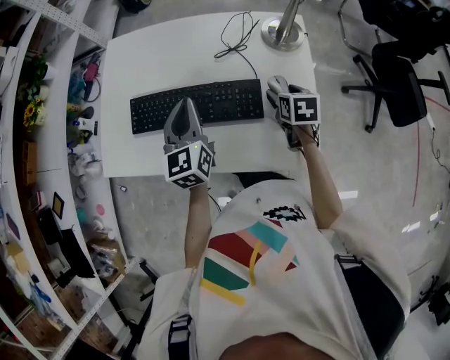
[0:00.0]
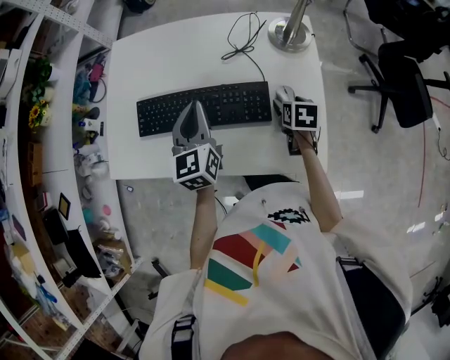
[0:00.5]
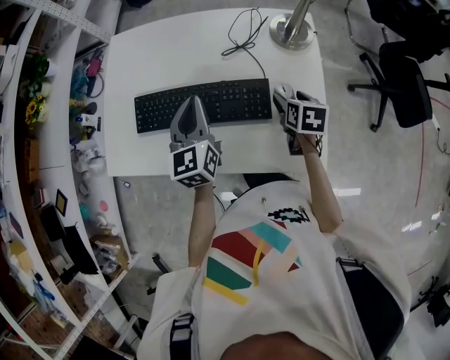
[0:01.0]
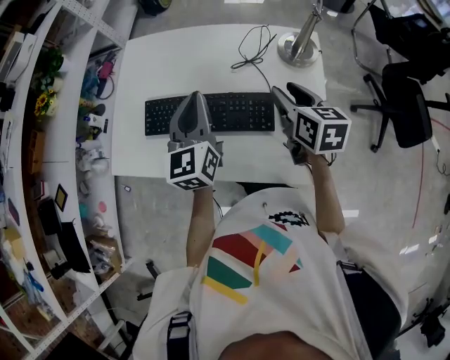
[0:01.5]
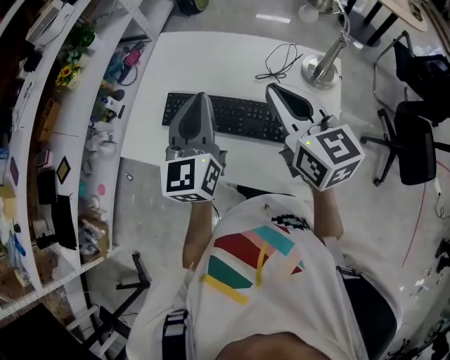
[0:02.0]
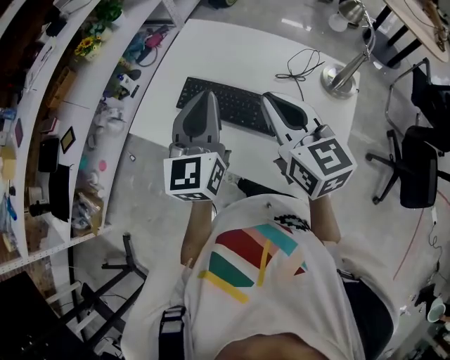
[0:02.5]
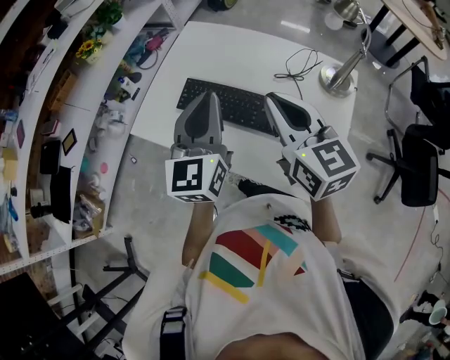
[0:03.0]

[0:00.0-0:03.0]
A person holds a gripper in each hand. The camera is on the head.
0:00.0 to 0:01.5: The right gripper goes roughly 15 cm upward, changes its angle by approximately 20 degrees, and closes up; the left gripper heads upward, covering approximately 5 cm.
0:01.5 to 0:03.0: The left gripper goes roughly 15 cm upward, backward and to the left. Meanwhile the right gripper moves to the left and upward, roughly 20 cm, turns by some 40 degrees, and closes up.

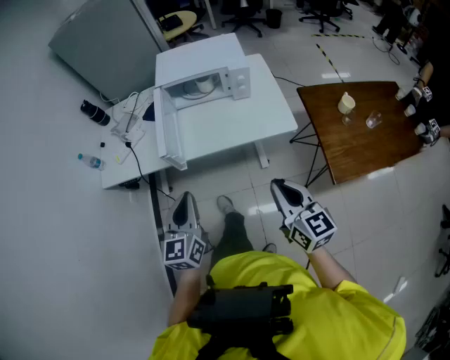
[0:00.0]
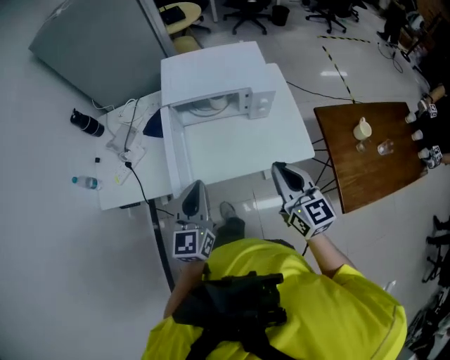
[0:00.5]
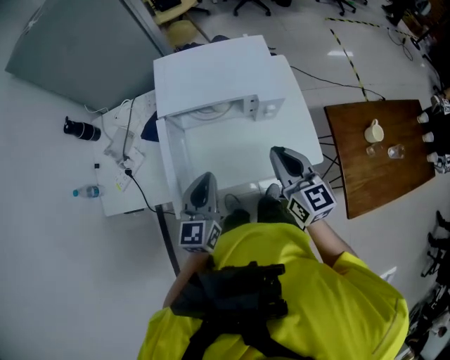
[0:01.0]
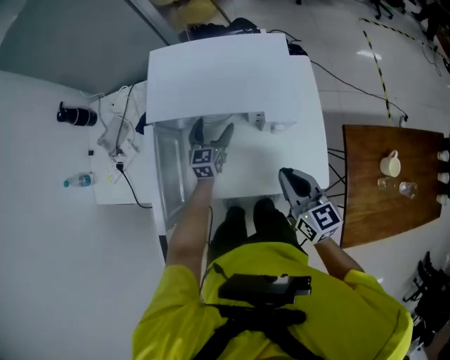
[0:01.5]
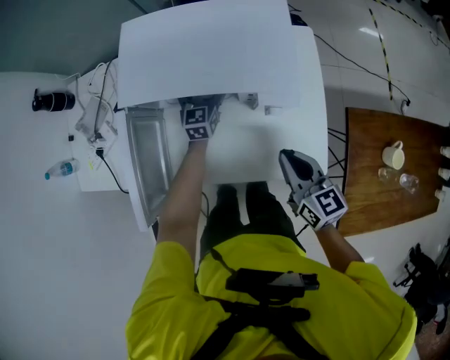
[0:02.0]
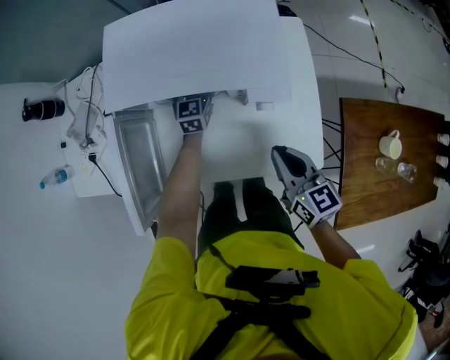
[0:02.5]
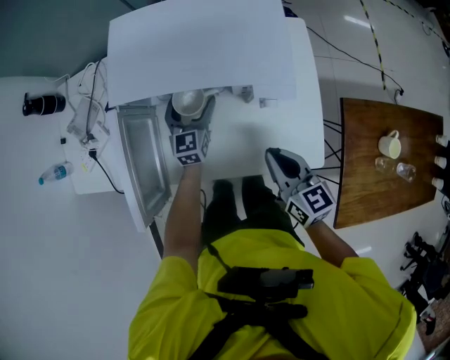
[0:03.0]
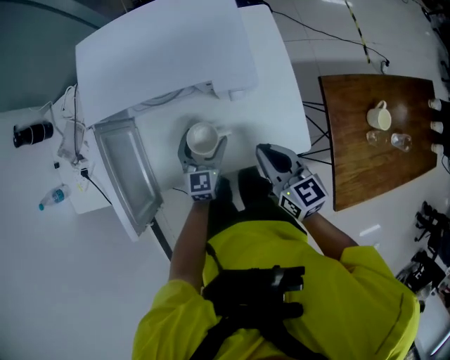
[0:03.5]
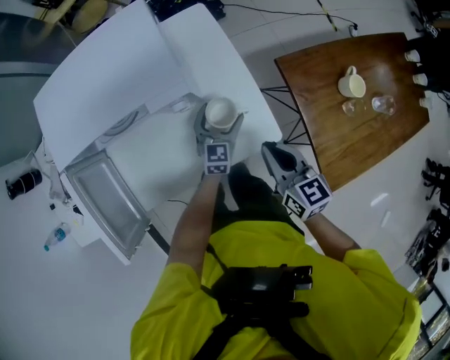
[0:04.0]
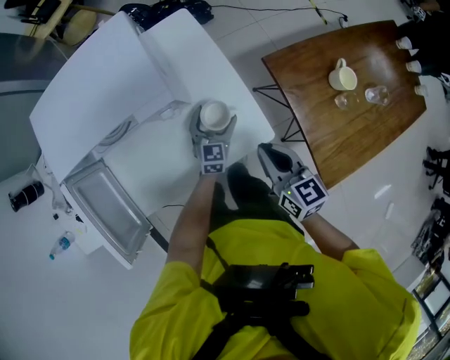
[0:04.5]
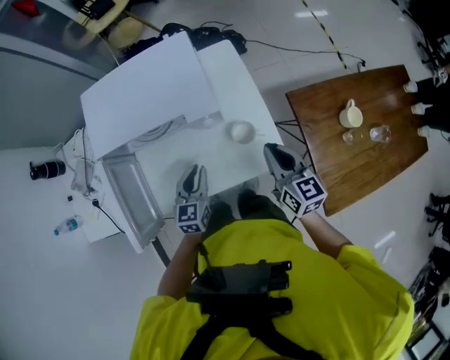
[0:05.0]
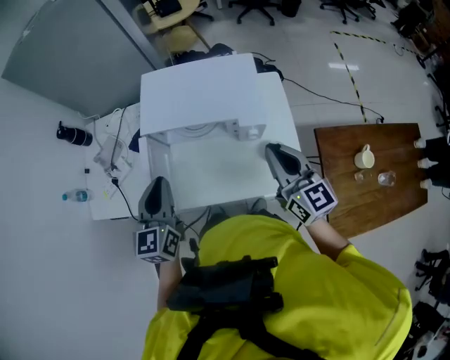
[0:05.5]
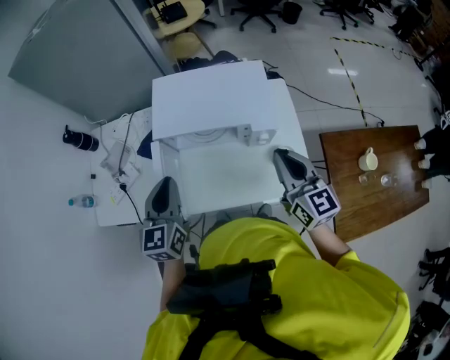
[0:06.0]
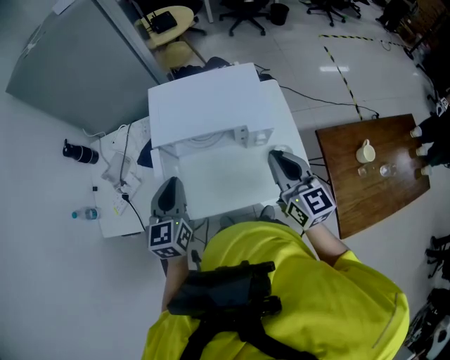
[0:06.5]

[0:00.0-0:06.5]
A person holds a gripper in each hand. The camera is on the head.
0:00.0 to 0:02.0: The two grippers travel together, forward, roughly 50 cm. The right gripper moves downward, approximately 15 cm; the left gripper goes roughly 30 cm downward, and opens up.
0:02.0 to 0:04.5: The right gripper shifts by about 20 cm, and turns by some 20 degrees. Meanwhile the left gripper ends up approximately 35 cm from where it was, and rotates roughly 30 degrees.
0:04.5 to 0:06.5: The left gripper heads to the left and upward, covering some 50 cm, swivels approximately 30 degrees, and closes. Meanwhile the right gripper is displaced upward and to the left by approximately 30 cm, and swivels some 30 degrees.

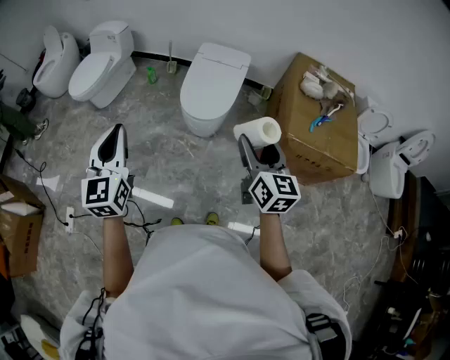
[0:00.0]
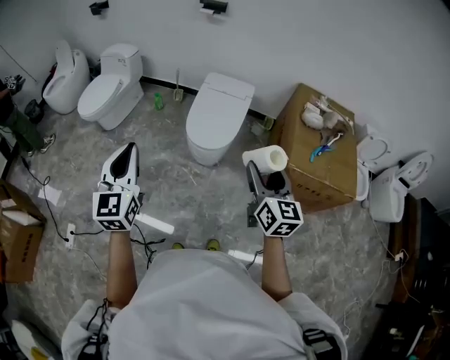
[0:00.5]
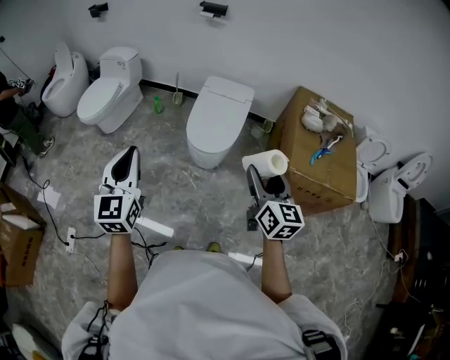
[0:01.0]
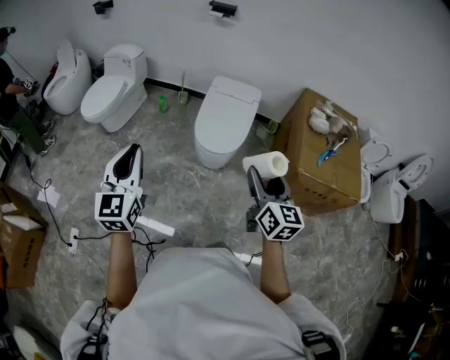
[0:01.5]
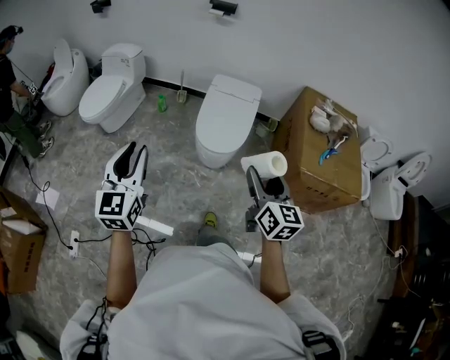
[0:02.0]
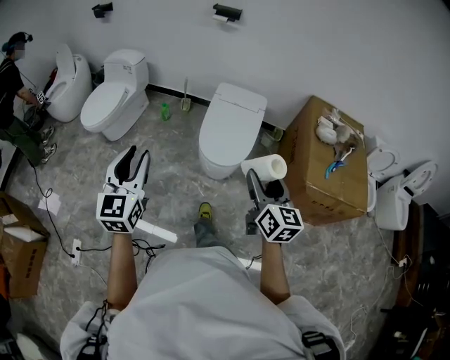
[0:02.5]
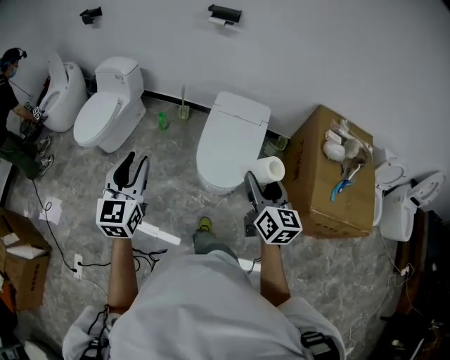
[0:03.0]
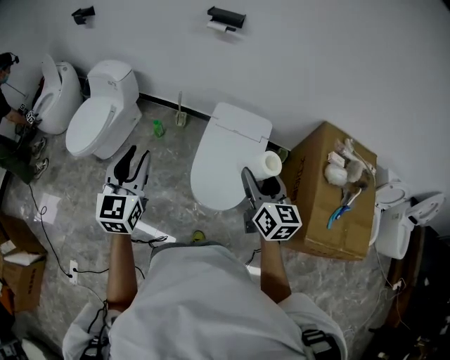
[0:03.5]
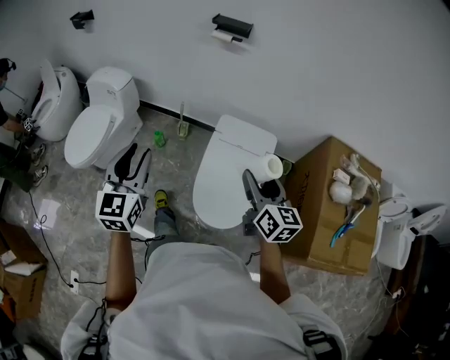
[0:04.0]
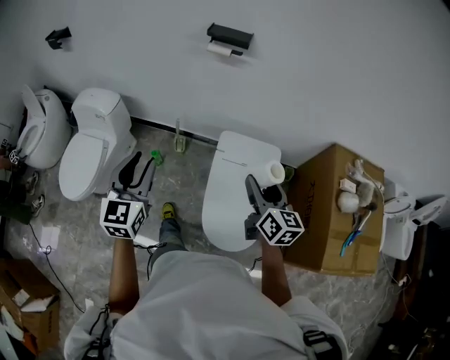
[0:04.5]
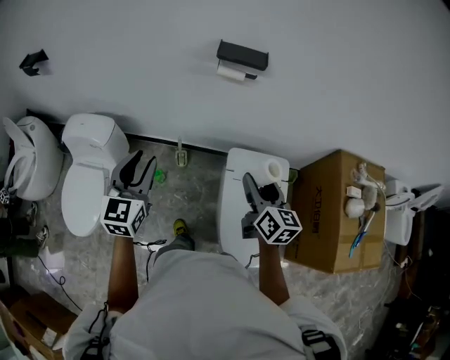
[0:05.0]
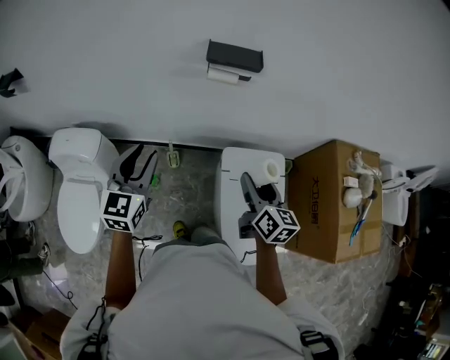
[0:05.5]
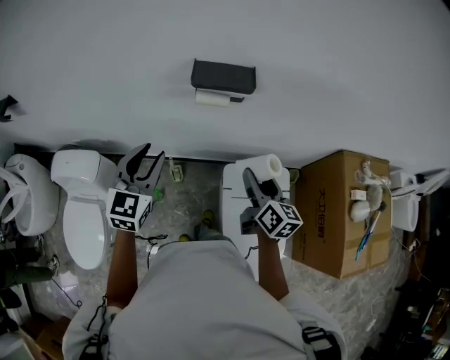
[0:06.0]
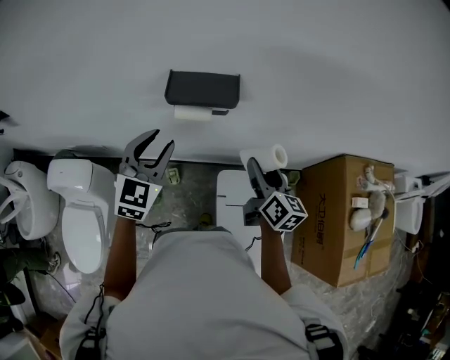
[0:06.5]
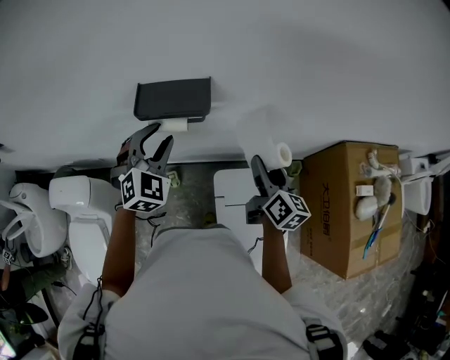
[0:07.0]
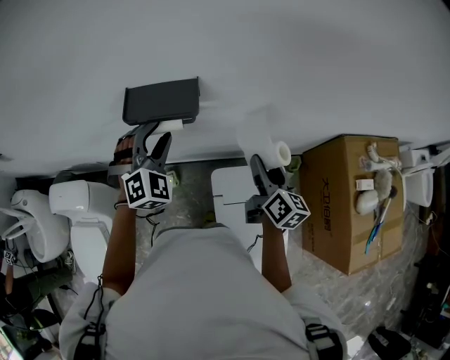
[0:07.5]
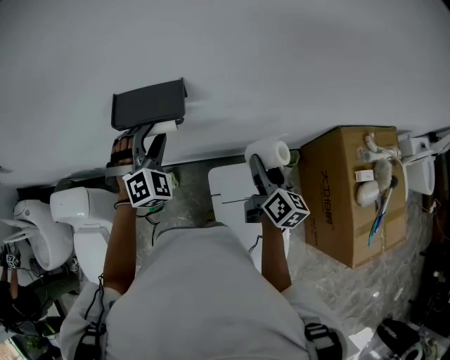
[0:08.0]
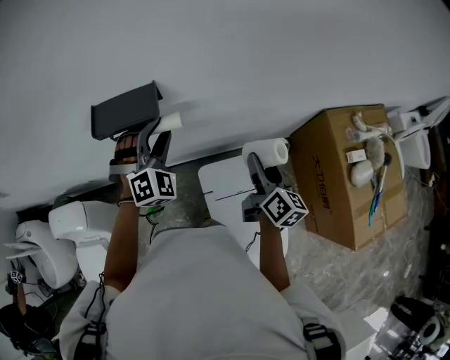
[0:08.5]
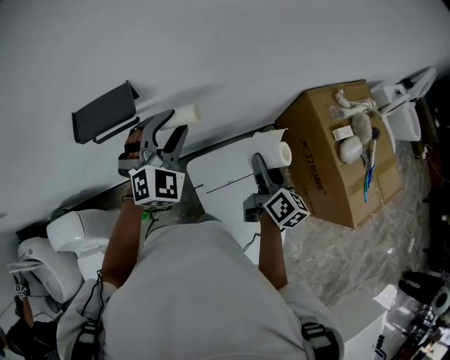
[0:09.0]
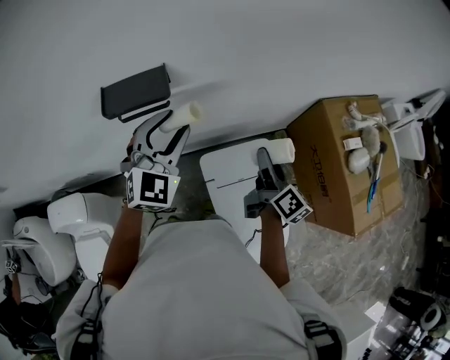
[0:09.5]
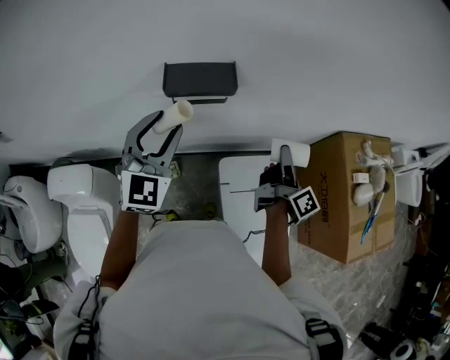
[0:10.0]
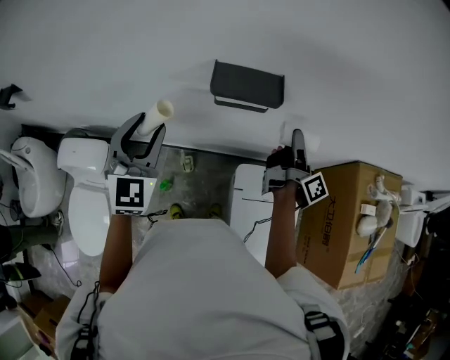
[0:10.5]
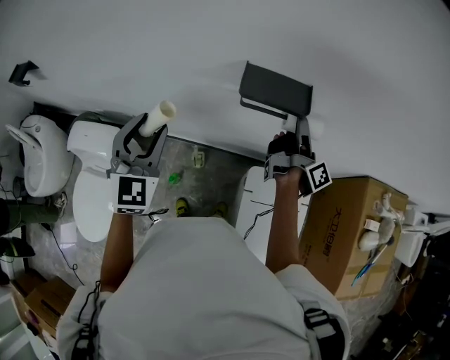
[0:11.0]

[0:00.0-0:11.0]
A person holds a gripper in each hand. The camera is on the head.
0:00.0 to 0:02.0: Both grippers move to the left, roughly 10 cm.
0:02.0 to 0:03.5: The two grippers travel together, forward, some 40 cm.
0:03.5 to 0:05.5: Both grippers are carried forward, approximately 50 cm. The right gripper changes its angle by approximately 30 degrees; the left gripper changes its angle by approximately 20 degrees.
0:05.5 to 0:07.5: Both grippers travel together forward and to the right, some 35 cm. The left gripper twists approximately 60 degrees clockwise, seen from behind.
0:07.5 to 0:09.0: The left gripper shifts roughly 20 cm to the right, and swivels roughly 20 degrees. Meanwhile the right gripper shifts about 15 cm to the right and backward, and changes its angle by some 20 degrees.
0:09.0 to 0:11.0: The left gripper changes place by about 40 cm, and rotates roughly 50 degrees, while the right gripper changes place by about 35 cm, and changes its angle by some 50 degrees.

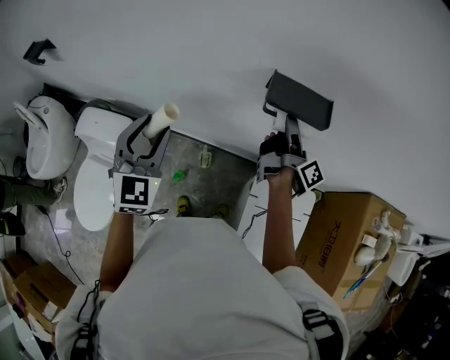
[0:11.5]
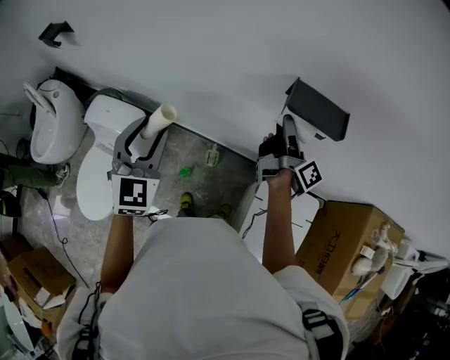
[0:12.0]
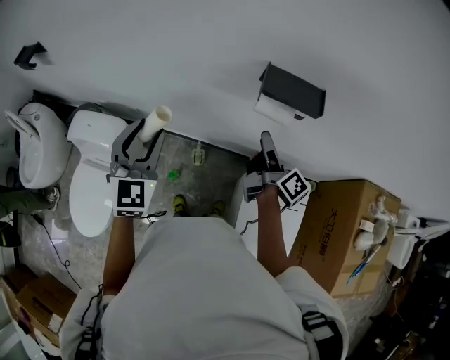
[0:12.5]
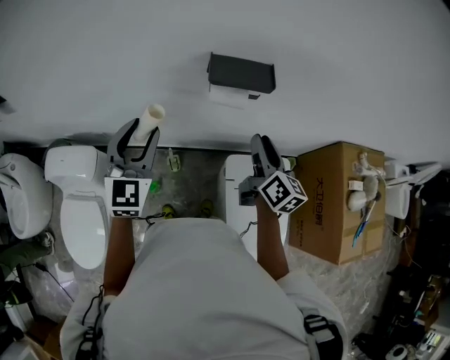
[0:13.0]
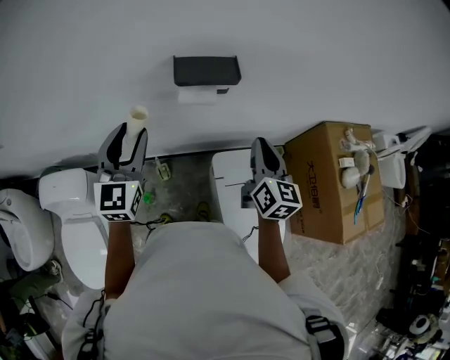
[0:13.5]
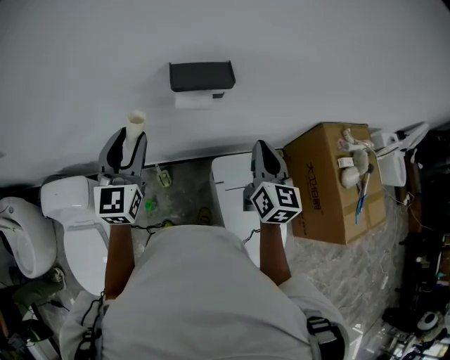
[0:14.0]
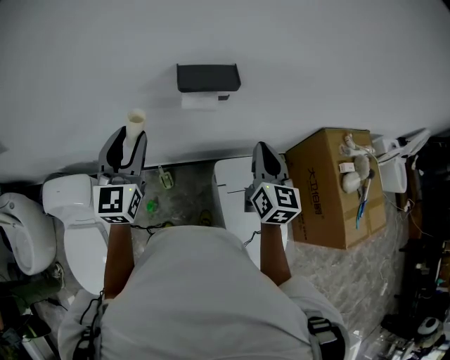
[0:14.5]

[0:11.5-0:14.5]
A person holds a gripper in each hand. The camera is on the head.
0:11.5 to 0:13.0: The right gripper travels backward by some 15 cm, rotates around the line of its fingers by some 50 degrees, counterclockwise from behind, and closes up. Meanwhile the left gripper travels to the right by some 5 cm.
0:13.0 to 0:14.5: The right gripper shifts approximately 10 cm backward, to the right and upward, swivels some 30 degrees, and closes up; the left gripper changes place by about 5 cm.

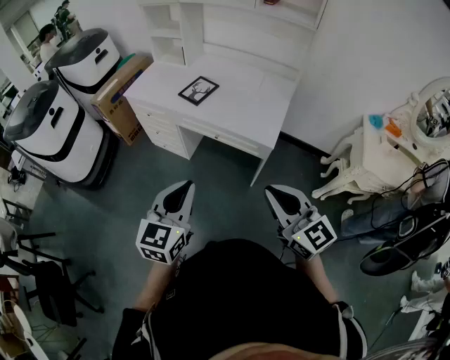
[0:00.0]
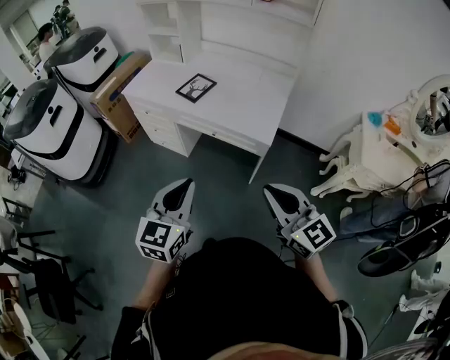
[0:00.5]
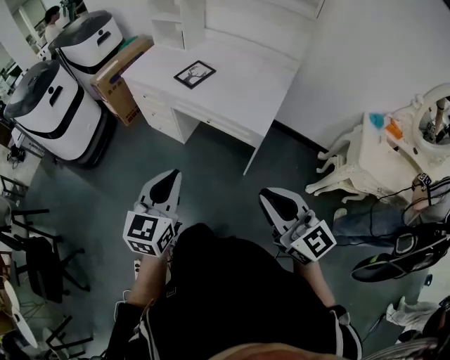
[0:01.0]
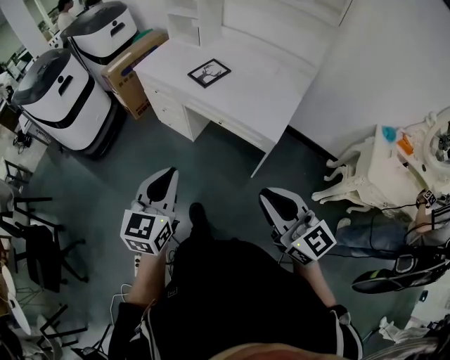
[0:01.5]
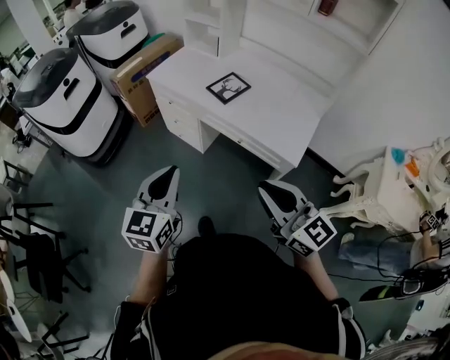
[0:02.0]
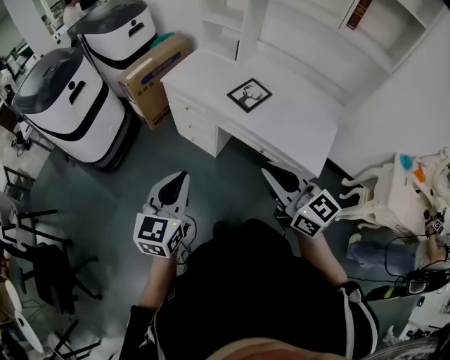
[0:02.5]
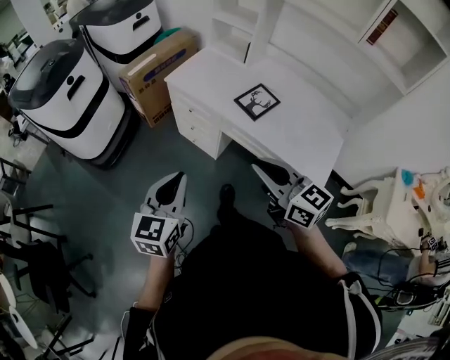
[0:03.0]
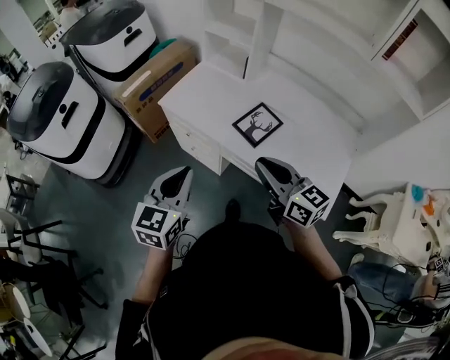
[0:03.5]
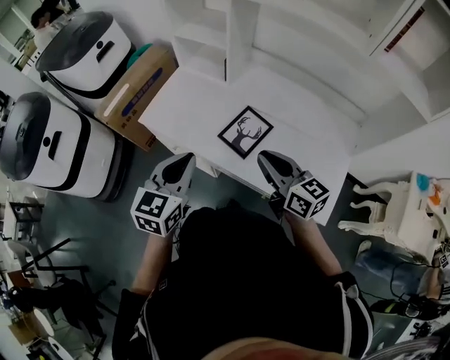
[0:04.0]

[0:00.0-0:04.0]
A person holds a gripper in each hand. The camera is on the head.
0:00.0 to 0:02.0: Both grippers move forward and to the left, approximately 15 cm.
0:02.0 to 0:04.0: The pair of grippers is taken forward, roughly 40 cm. The right gripper swivels some 20 degrees.
